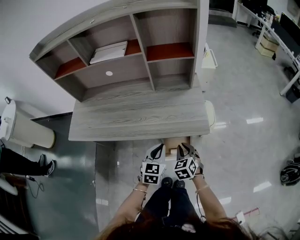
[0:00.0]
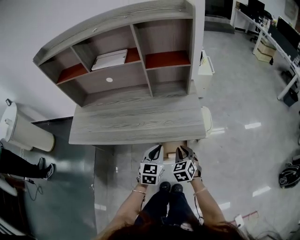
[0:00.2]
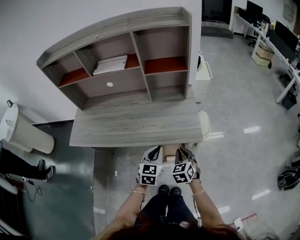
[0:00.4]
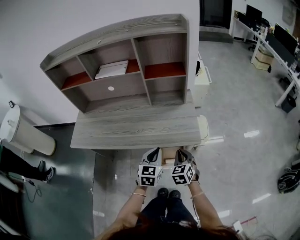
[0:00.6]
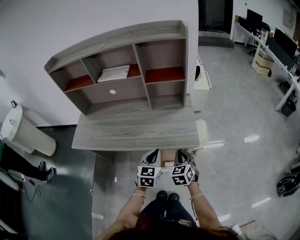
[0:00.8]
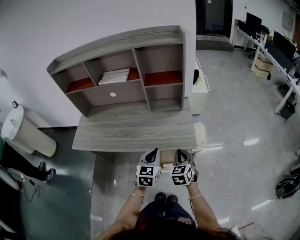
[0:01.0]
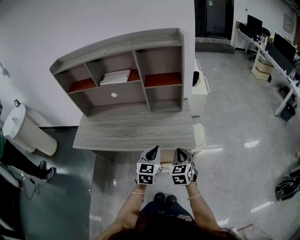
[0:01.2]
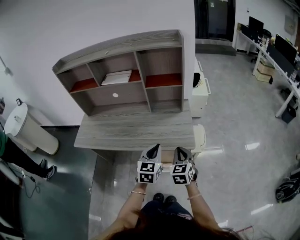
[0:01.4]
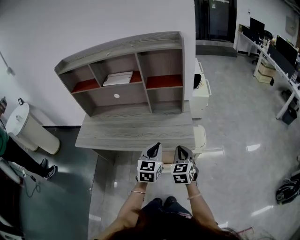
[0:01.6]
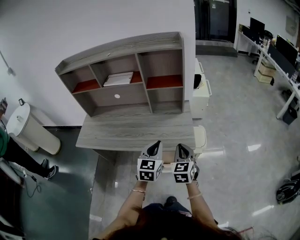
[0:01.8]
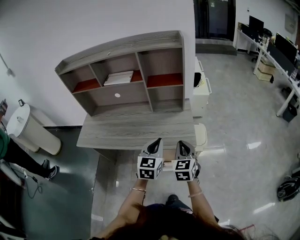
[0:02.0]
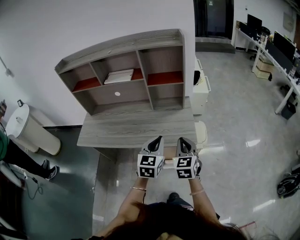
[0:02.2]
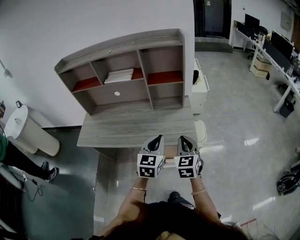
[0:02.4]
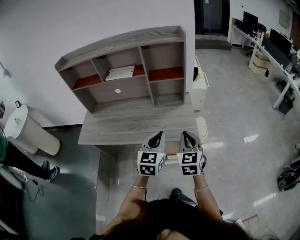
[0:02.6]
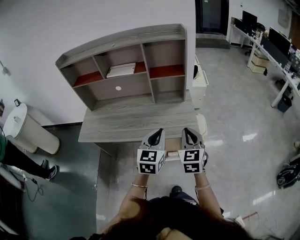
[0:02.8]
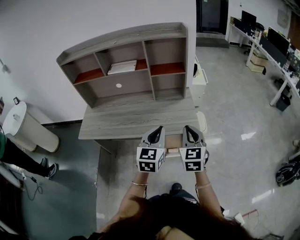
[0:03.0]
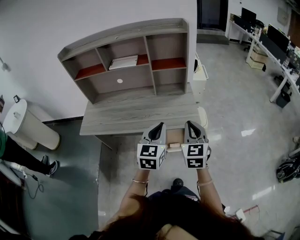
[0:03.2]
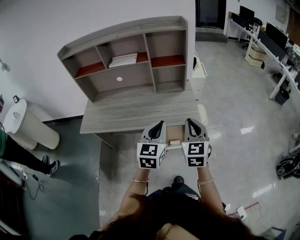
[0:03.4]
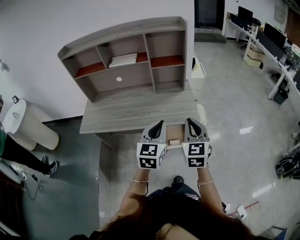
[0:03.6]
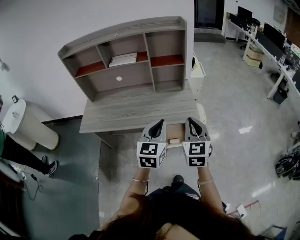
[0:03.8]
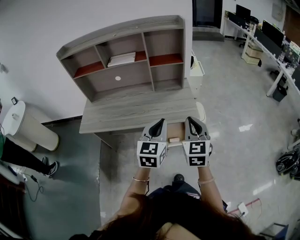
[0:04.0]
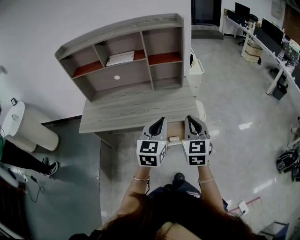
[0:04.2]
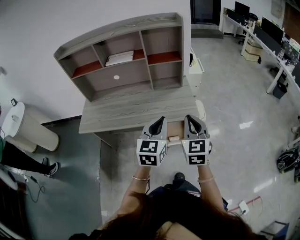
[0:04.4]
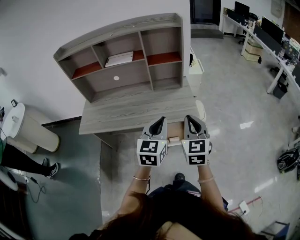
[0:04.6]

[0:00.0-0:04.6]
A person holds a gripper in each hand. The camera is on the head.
0:00.0 to 0:01.6: Both grippers travel together upward, roughly 15 cm. The right gripper swivels approximately 20 degrees.
0:01.6 to 0:03.0: The grippers both shift upward and backward by some 10 cm.
0:03.0 to 0:04.6: The grippers move only a little.

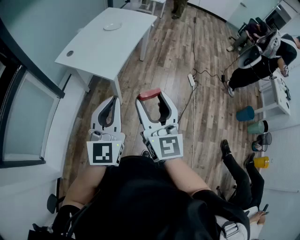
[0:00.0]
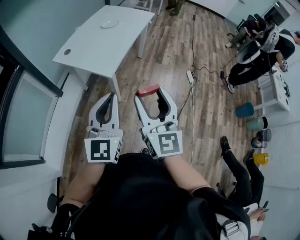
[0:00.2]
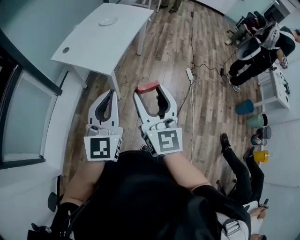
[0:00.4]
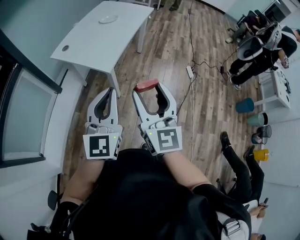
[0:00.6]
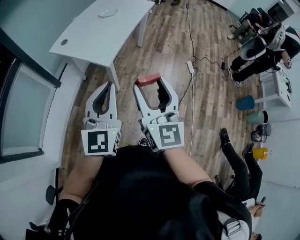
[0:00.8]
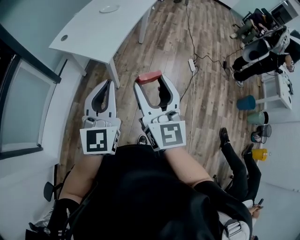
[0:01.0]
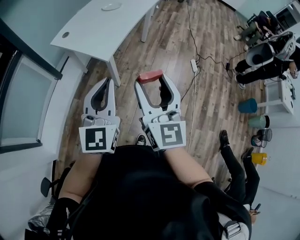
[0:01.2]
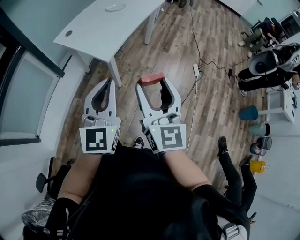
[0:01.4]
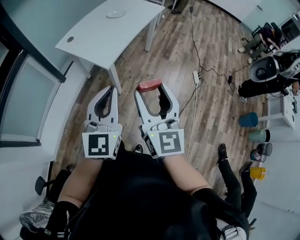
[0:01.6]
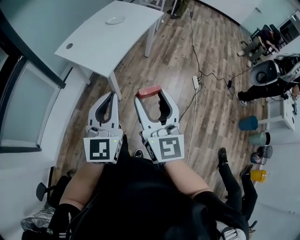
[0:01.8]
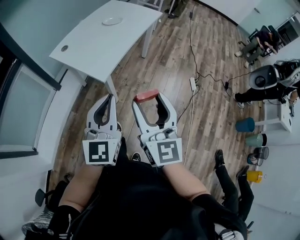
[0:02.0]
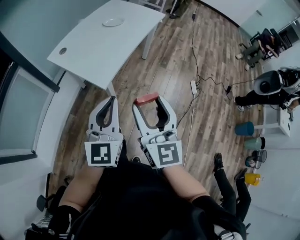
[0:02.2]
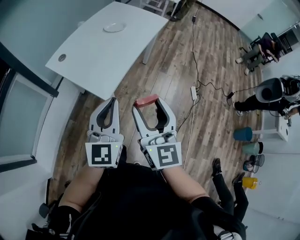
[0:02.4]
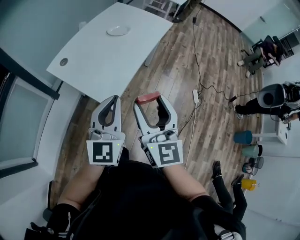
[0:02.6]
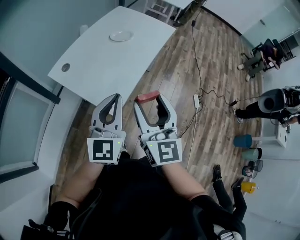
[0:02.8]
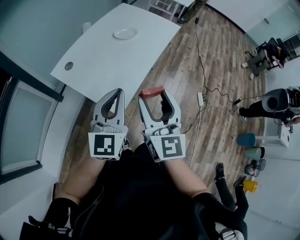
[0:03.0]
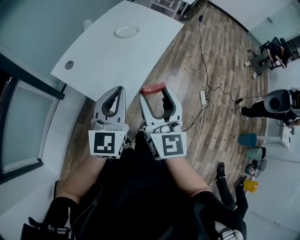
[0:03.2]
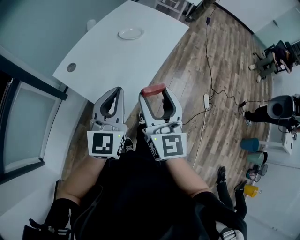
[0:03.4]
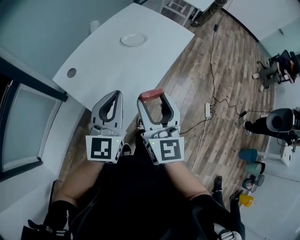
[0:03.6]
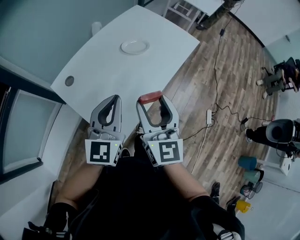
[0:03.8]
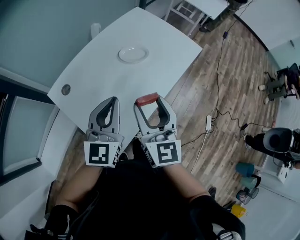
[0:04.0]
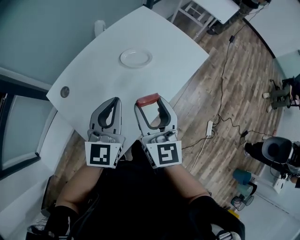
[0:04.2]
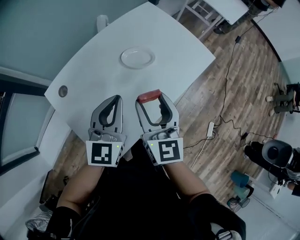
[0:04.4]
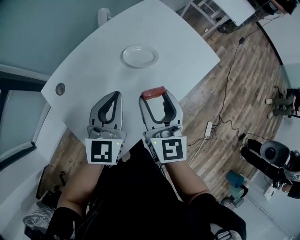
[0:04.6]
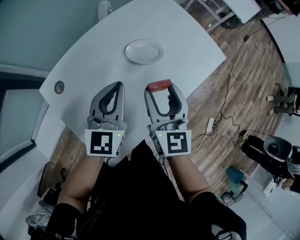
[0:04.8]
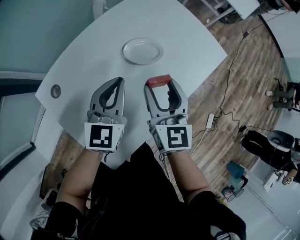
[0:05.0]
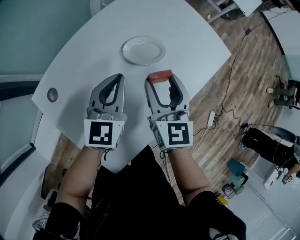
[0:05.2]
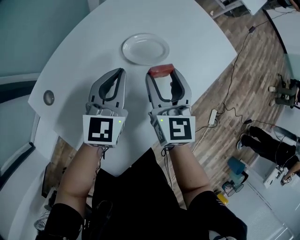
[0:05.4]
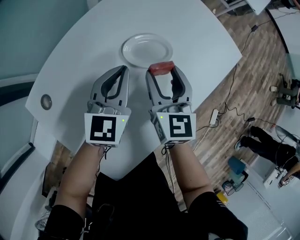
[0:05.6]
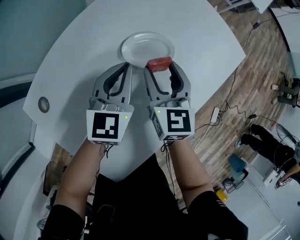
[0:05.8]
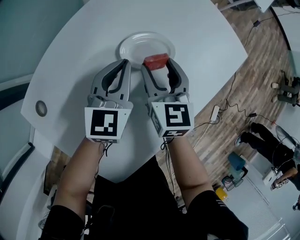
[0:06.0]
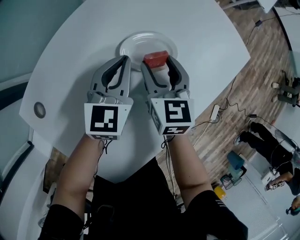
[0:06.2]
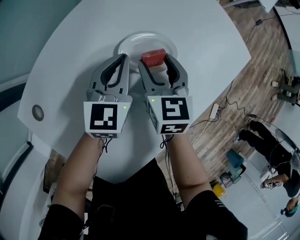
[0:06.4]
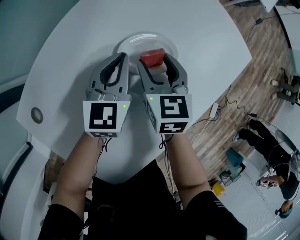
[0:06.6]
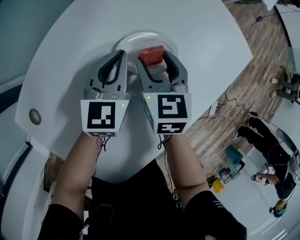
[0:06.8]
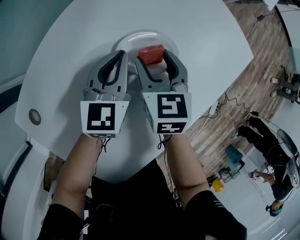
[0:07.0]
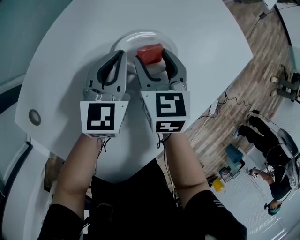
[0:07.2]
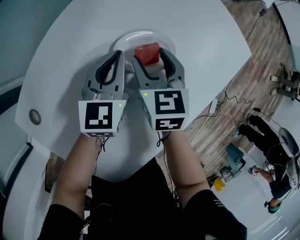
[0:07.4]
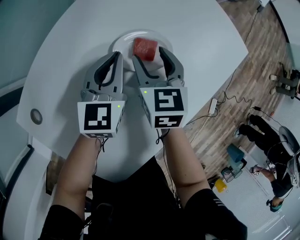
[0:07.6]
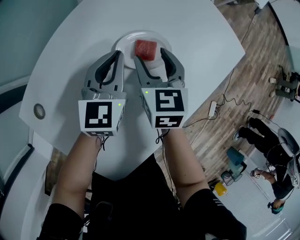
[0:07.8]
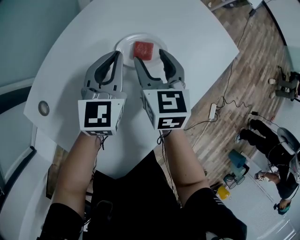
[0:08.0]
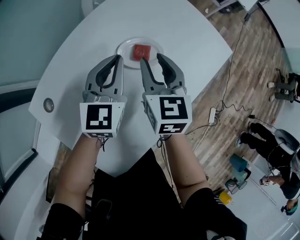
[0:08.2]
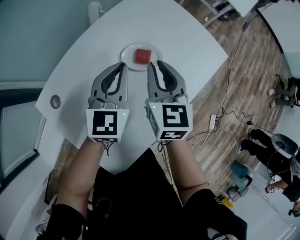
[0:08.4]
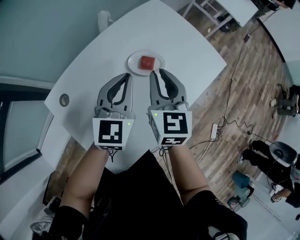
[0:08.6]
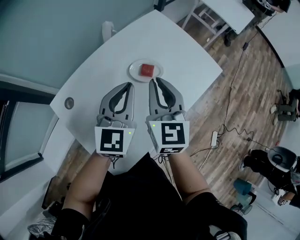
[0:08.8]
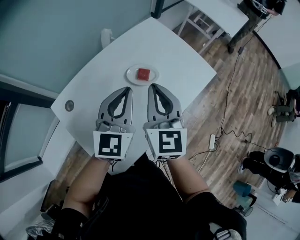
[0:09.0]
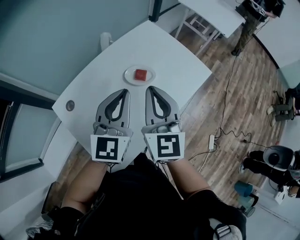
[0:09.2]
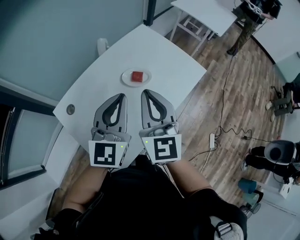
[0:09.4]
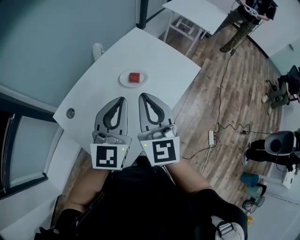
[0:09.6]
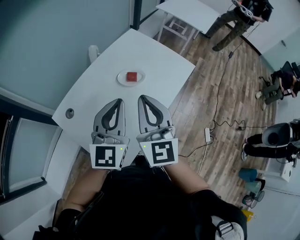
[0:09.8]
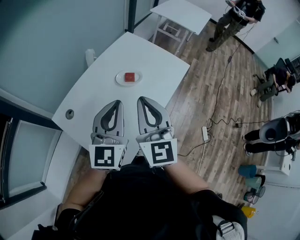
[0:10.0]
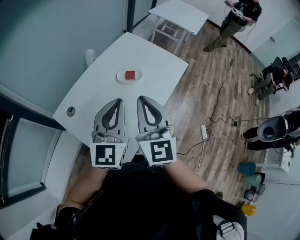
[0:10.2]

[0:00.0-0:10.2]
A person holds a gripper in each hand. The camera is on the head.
0:00.0 to 0:01.4: The right gripper heads to the right, covering approximately 5 cm. Meanwhile the left gripper moves approximately 5 cm.
0:01.4 to 0:03.0: Both grippers travel together forward, about 30 cm.
0:03.0 to 0:04.4: The grippers both shift forward by approximately 30 cm.
0:04.4 to 0:05.8: The right gripper heads downward and forward, covering roughly 25 cm. Meanwhile the left gripper goes roughly 20 cm forward and downward.
0:05.8 to 0:07.2: The right gripper ends up some 5 cm from where it was; the left gripper ends up approximately 5 cm from where it was.
0:07.2 to 0:08.8: The grippers both shift upward and backward by some 25 cm. The right gripper turns by approximately 30 degrees, and closes its fingers.
0:08.8 to 0:10.2: Both grippers travel together backward and upward, some 20 cm.

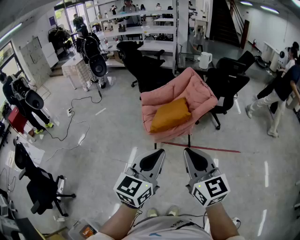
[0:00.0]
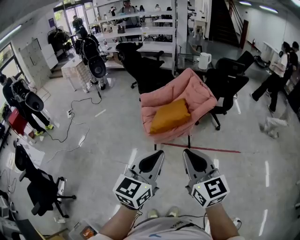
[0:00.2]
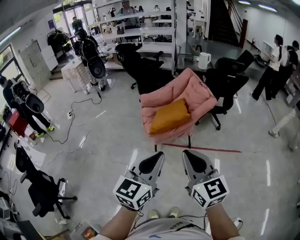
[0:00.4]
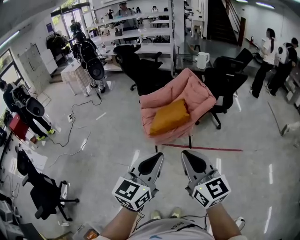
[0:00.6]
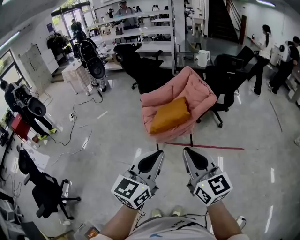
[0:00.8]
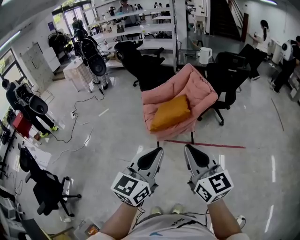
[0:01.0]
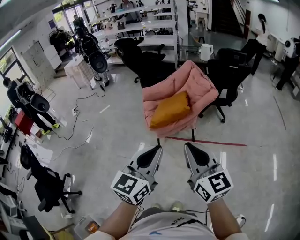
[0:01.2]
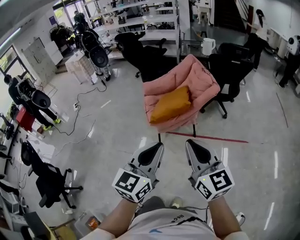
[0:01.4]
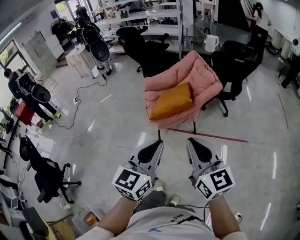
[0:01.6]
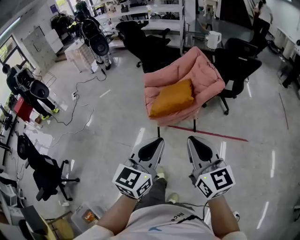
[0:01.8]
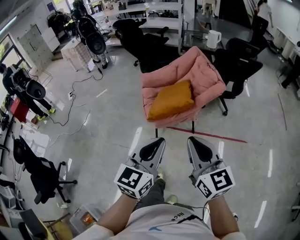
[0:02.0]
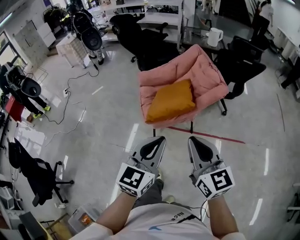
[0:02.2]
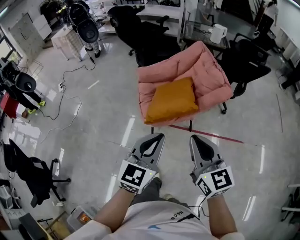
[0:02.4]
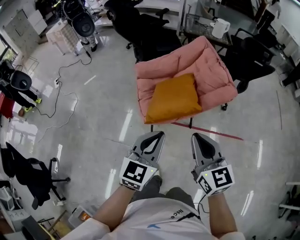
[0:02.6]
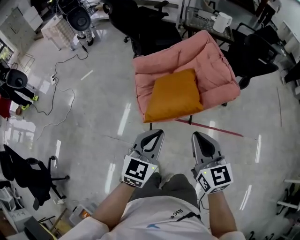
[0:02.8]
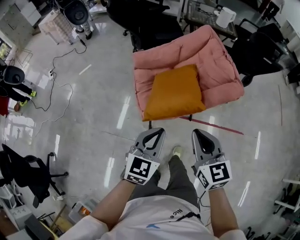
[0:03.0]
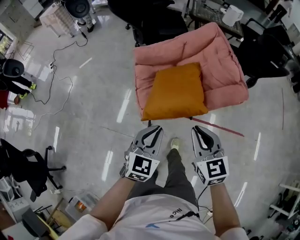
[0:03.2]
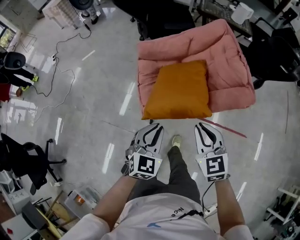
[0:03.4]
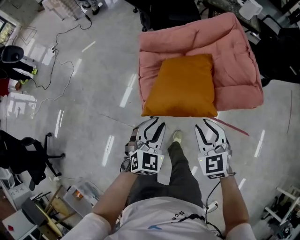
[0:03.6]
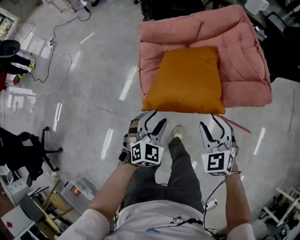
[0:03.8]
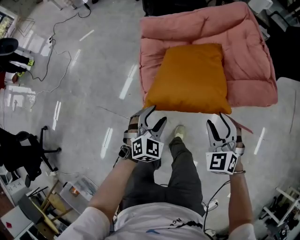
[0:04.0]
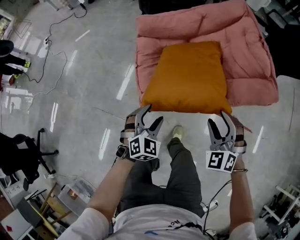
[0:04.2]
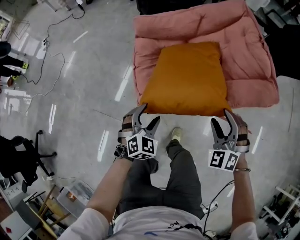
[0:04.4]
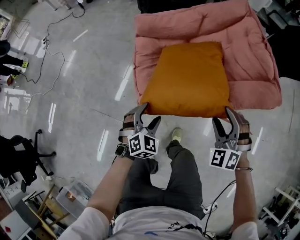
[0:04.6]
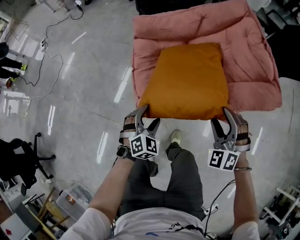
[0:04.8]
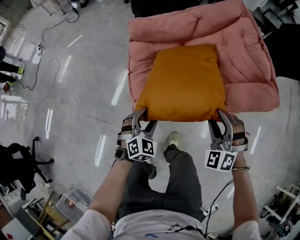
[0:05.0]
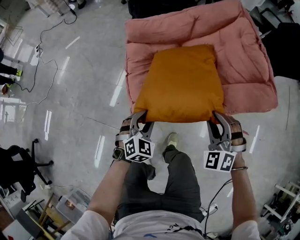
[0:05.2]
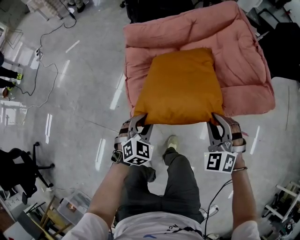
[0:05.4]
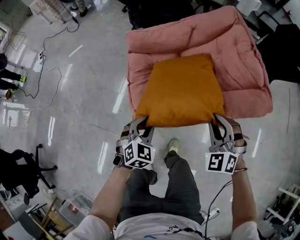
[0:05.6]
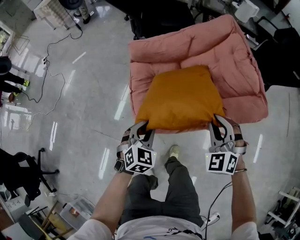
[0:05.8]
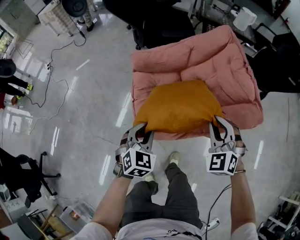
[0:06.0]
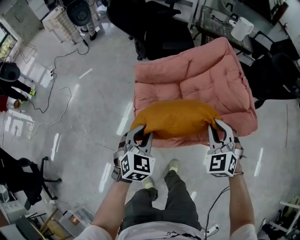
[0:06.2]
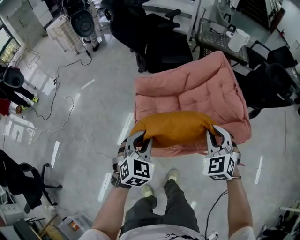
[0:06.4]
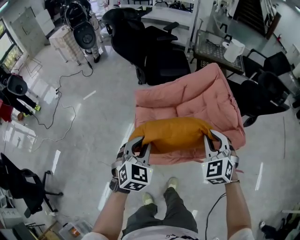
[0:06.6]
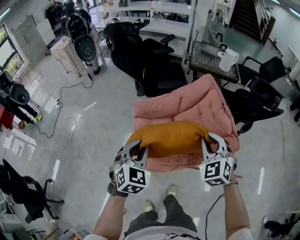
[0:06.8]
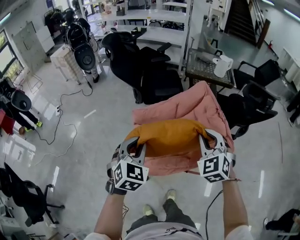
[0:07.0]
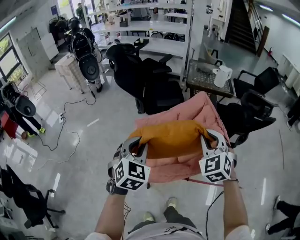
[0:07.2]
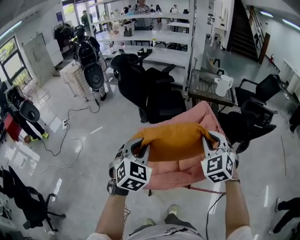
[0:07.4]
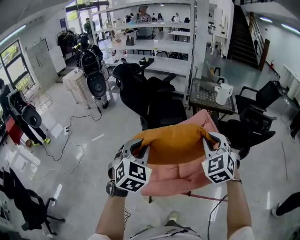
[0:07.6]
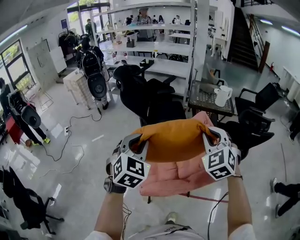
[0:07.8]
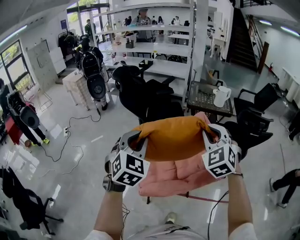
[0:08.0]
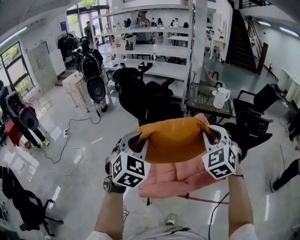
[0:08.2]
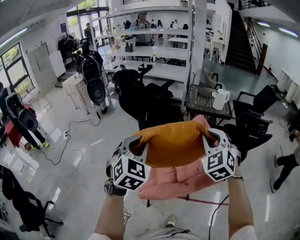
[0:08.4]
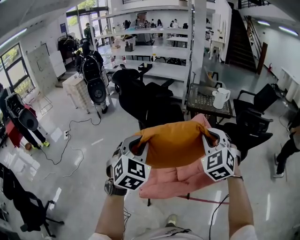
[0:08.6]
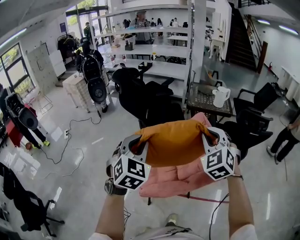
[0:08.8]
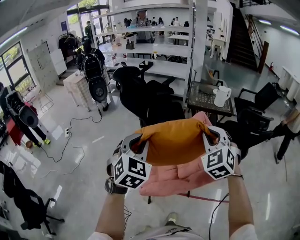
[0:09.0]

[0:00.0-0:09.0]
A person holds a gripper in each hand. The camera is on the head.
0:00.0 to 0:01.6: The two grippers go approximately 5 cm to the right.
0:01.6 to 0:03.0: The grippers both shift forward and downward by some 40 cm. The right gripper turns by about 20 degrees.
0:03.0 to 0:04.4: The left gripper travels downward by roughly 35 cm, rotates approximately 30 degrees, and opens up. The right gripper shifts roughly 30 cm downward and forward, twists roughly 60 degrees counterclockwise, seen from behind, and opens up.
0:04.4 to 0:06.0: The two grippers go roughly 15 cm upward and forward. The left gripper closes up. The right gripper closes its fingers.
0:06.0 to 0:07.6: The grippers both shift upward by about 40 cm.
0:07.6 to 0:09.0: The grippers stay close to where they were, moving slightly.
